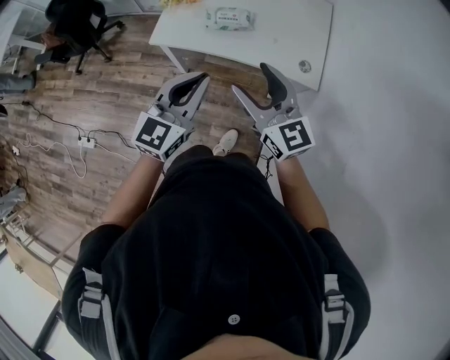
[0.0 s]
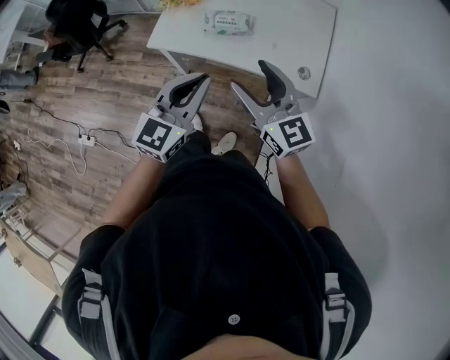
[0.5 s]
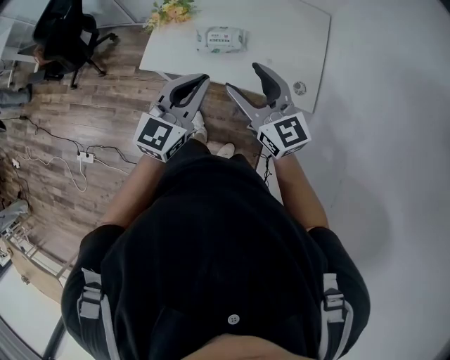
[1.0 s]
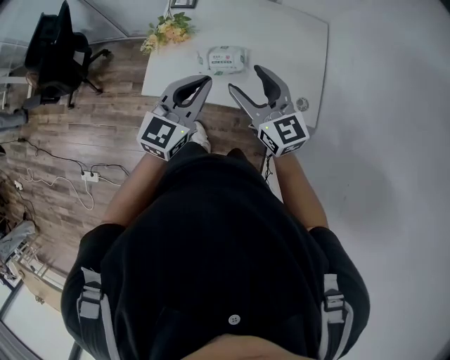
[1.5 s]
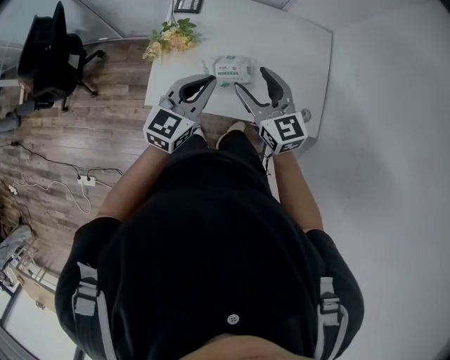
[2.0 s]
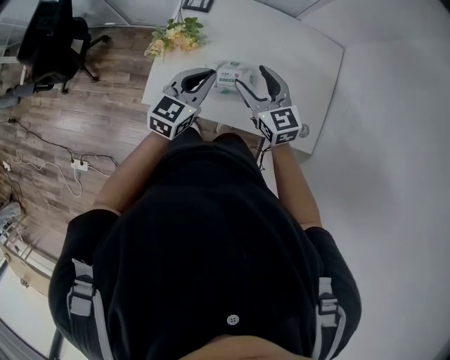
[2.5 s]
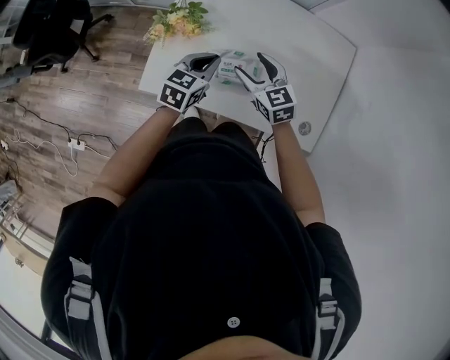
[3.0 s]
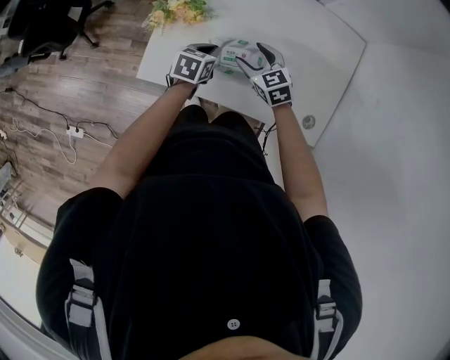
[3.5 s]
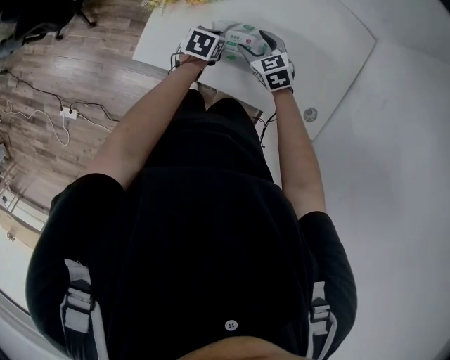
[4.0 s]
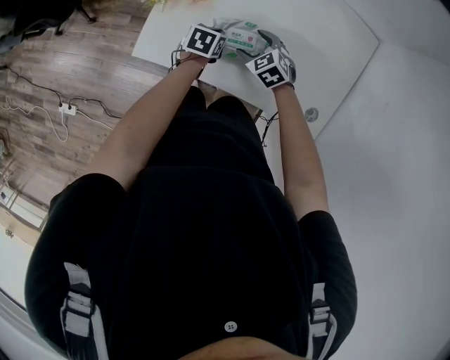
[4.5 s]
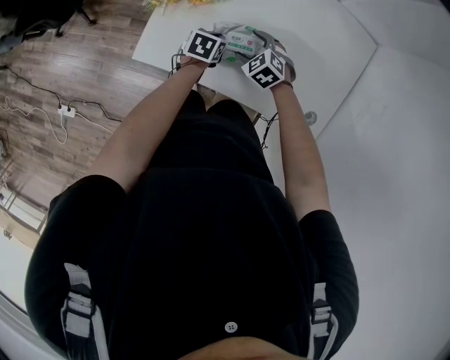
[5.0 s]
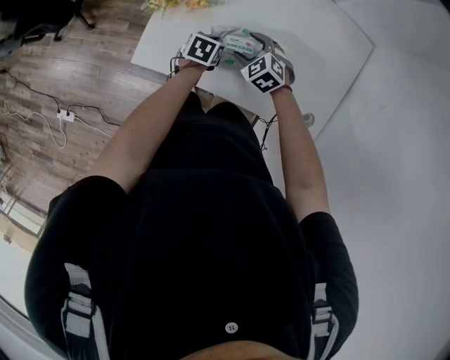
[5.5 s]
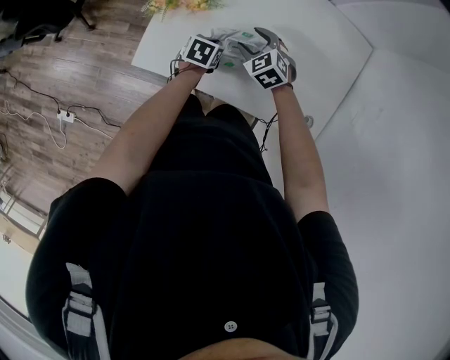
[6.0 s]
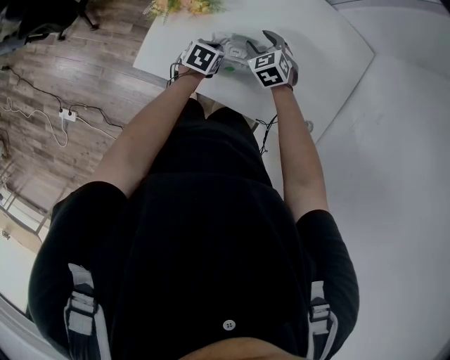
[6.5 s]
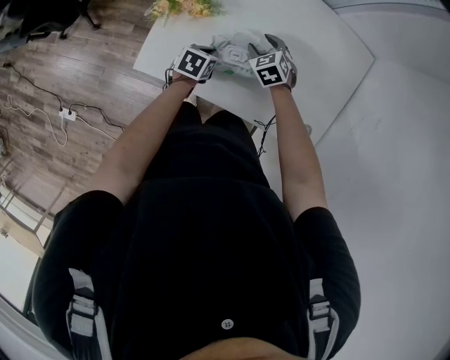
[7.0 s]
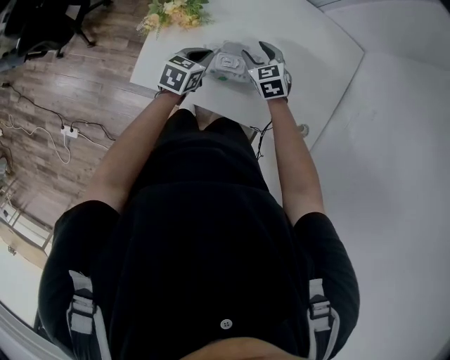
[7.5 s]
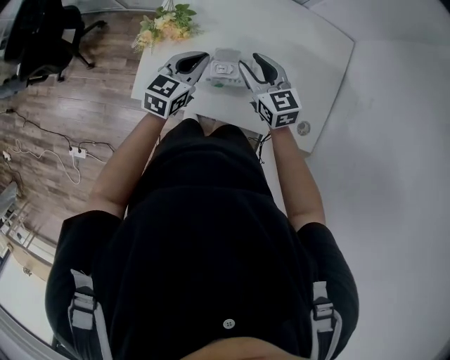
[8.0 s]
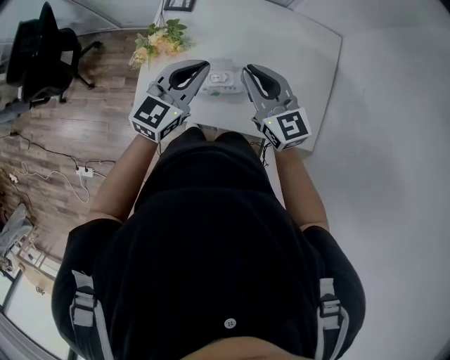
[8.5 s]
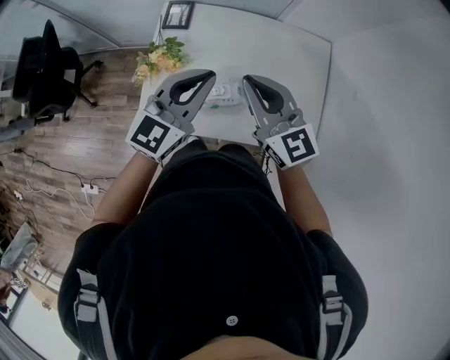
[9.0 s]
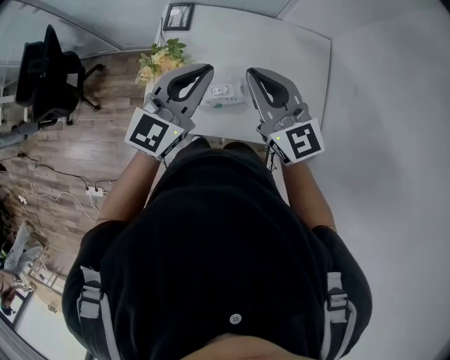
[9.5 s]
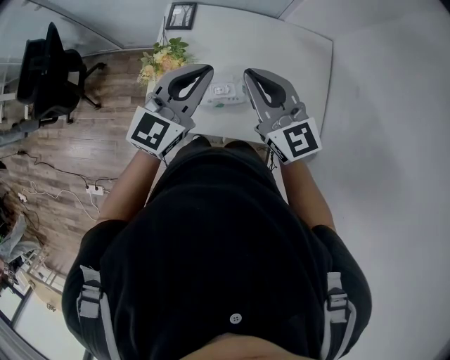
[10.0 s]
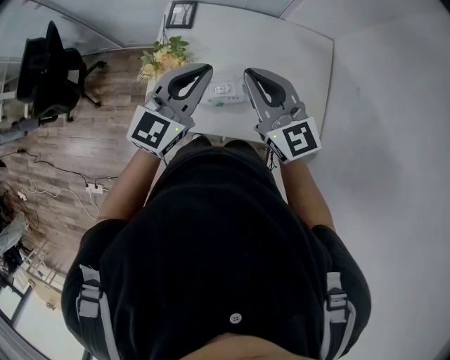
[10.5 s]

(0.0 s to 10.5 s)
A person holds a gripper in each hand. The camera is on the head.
0.0 s - 2.0 s: The two grippers go about 30 cm forward.
2.0 s - 4.0 s: The grippers both shift downward by some 30 cm. The right gripper tilts its fingers roughly 30 degrees downward, while the left gripper angles its fingers downward, by about 50 degrees.
4.0 s - 6.5 s: The right gripper is displaced forward by approximately 5 cm.
6.5 s - 8.5 s: The grippers both shift upward by roughly 30 cm. The right gripper tips its fingers upward by approximately 40 degrees, and closes. The left gripper tips its fingers upward by some 50 degrees.
8.5 s - 10.5 s: The two grippers go about 10 cm upward.

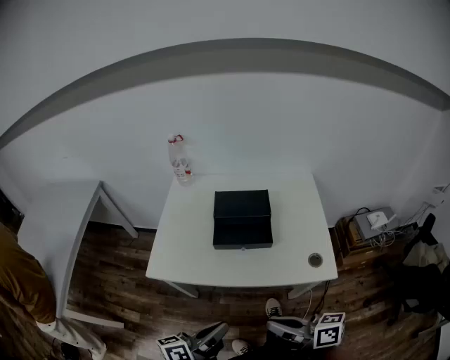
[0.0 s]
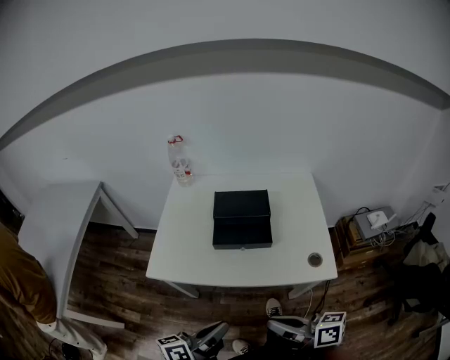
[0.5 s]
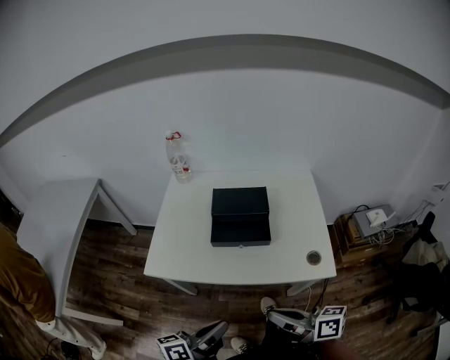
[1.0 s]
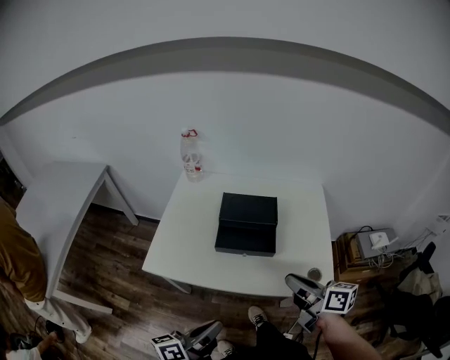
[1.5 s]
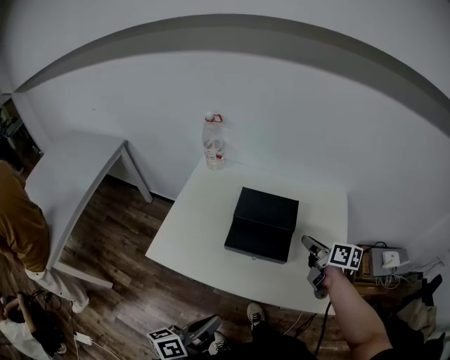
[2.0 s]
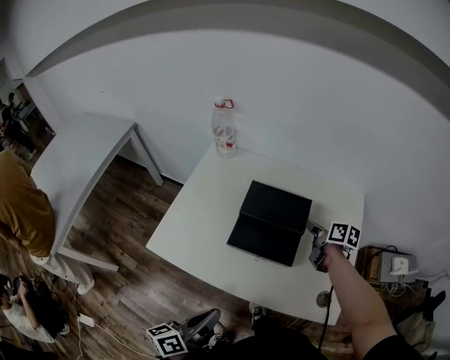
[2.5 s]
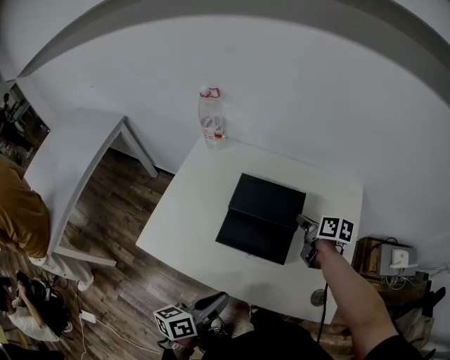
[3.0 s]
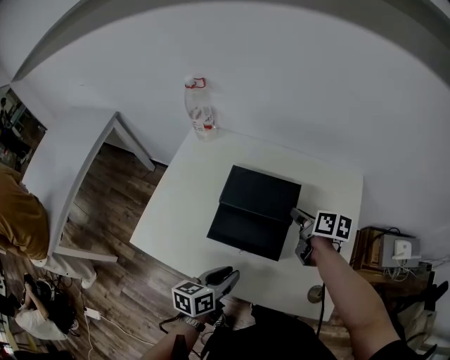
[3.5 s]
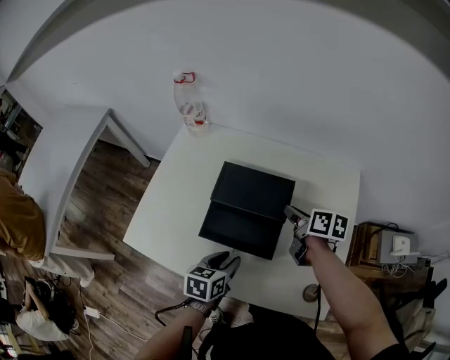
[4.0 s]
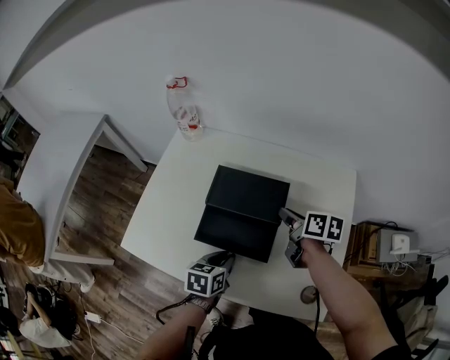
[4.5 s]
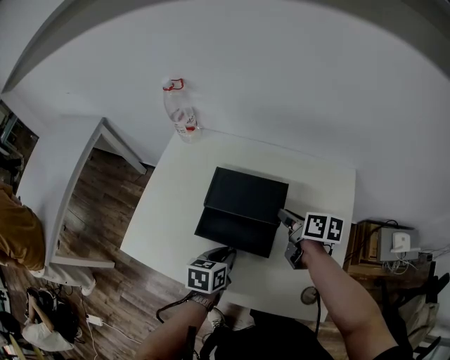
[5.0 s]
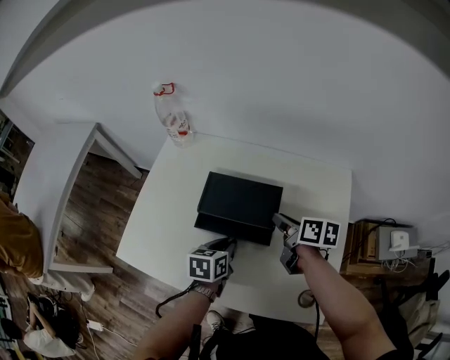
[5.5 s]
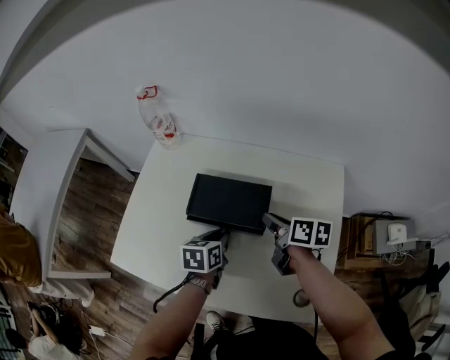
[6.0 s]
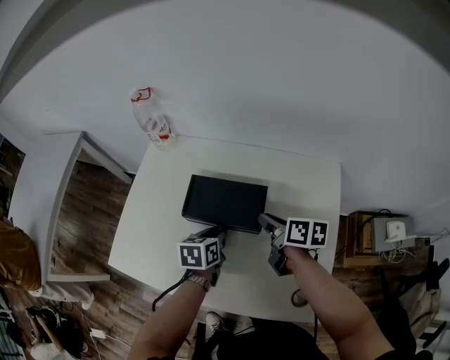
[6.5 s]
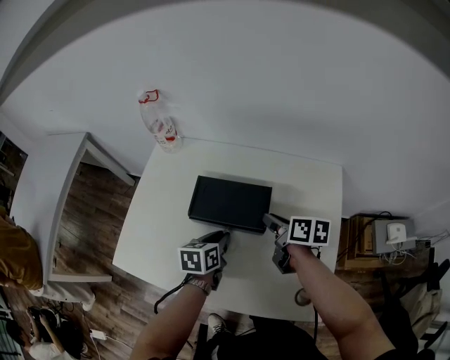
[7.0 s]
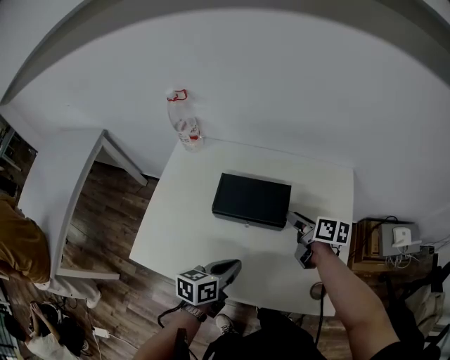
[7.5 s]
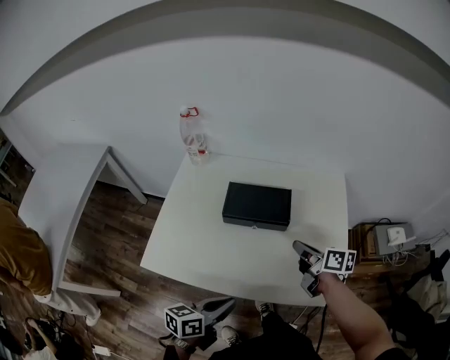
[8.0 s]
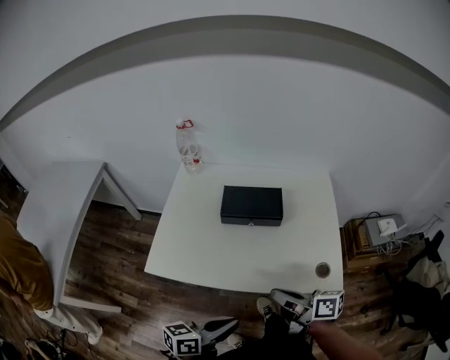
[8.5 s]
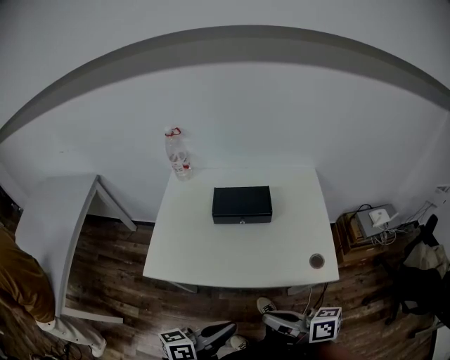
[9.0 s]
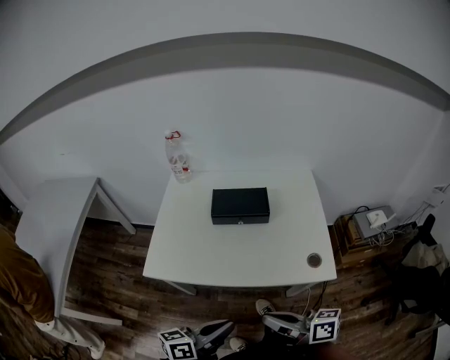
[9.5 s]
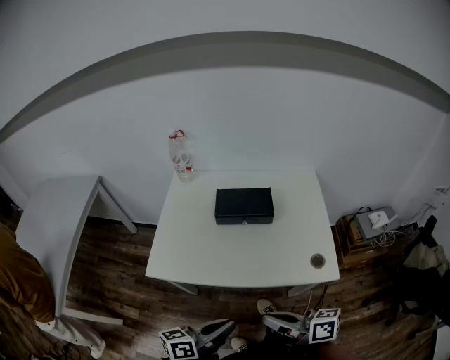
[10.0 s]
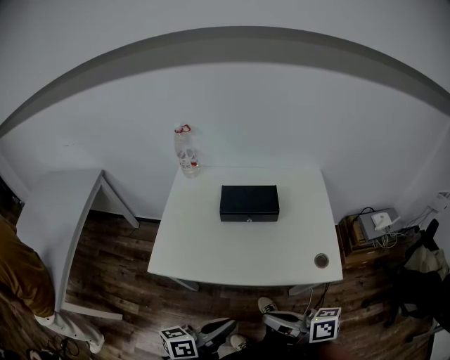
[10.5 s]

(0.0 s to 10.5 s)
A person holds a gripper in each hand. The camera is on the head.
0.0 s - 2.0 s: The right gripper travels forward and to the right by about 40 cm, swivels some 30 degrees, and opens. Meanwhile the left gripper goes some 5 cm forward.
2.0 s - 4.0 s: The left gripper shifts about 25 cm forward, downward and to the right, angles its fingers downward, by roughly 40 degrees, and opens. Meanwhile the right gripper shifts some 15 cm forward and downward.
4.0 s - 6.5 s: The left gripper goes some 15 cm forward, and closes.
6.5 s - 8.5 s: The left gripper moves backward and upward, some 40 cm, and tips its fingers upward by approximately 40 degrees. The right gripper is displaced backward by roughly 30 cm, changes its angle by roughly 20 degrees, and closes.
8.5 s - 10.5 s: The right gripper heads backward, covering some 10 cm.

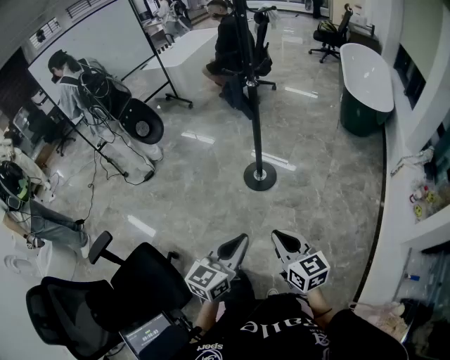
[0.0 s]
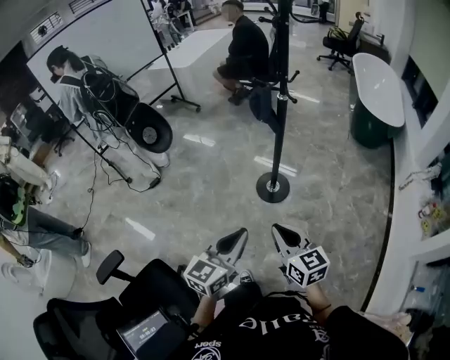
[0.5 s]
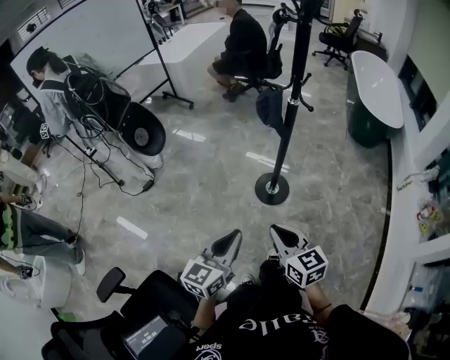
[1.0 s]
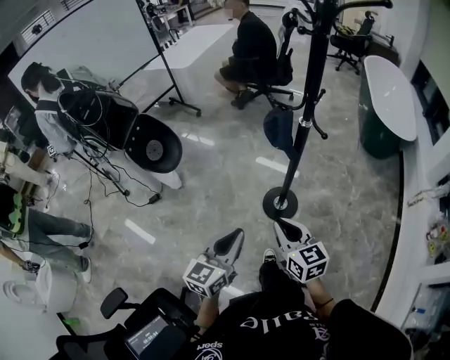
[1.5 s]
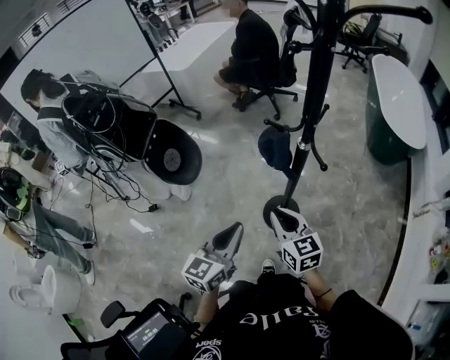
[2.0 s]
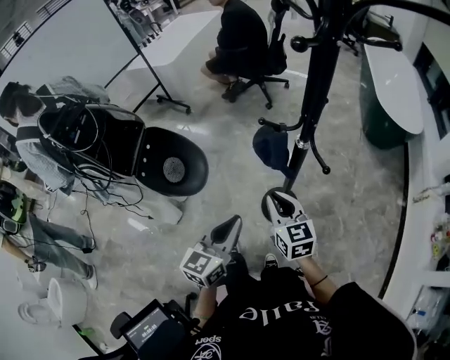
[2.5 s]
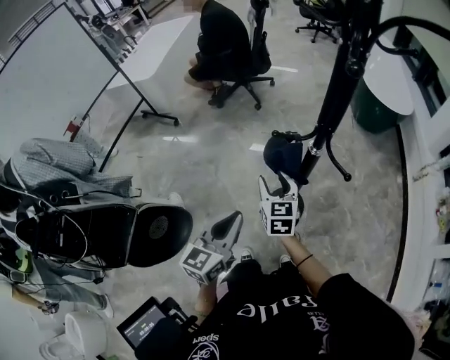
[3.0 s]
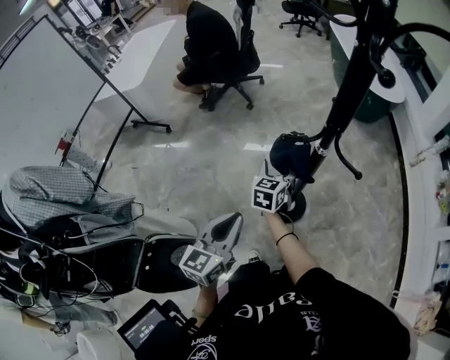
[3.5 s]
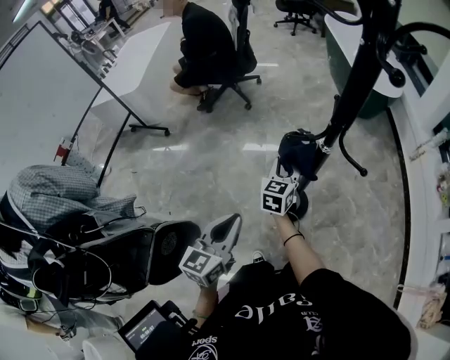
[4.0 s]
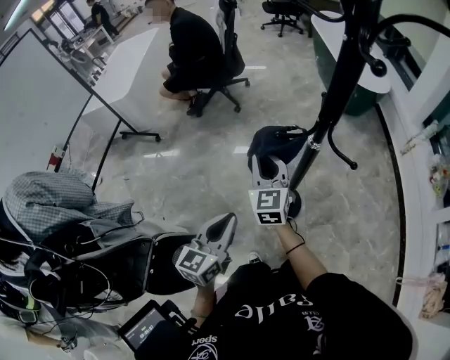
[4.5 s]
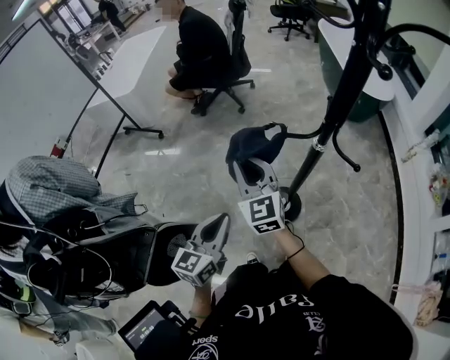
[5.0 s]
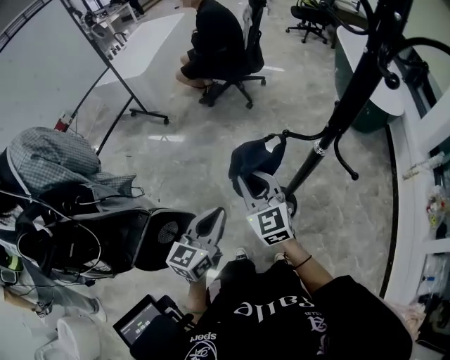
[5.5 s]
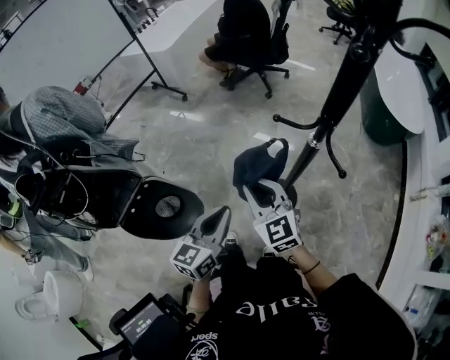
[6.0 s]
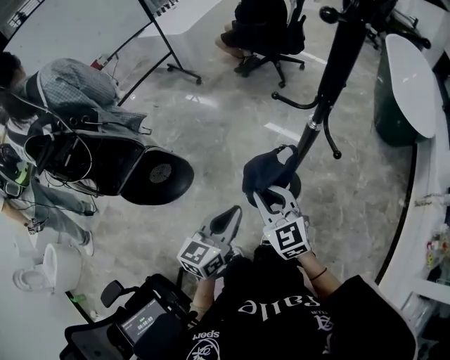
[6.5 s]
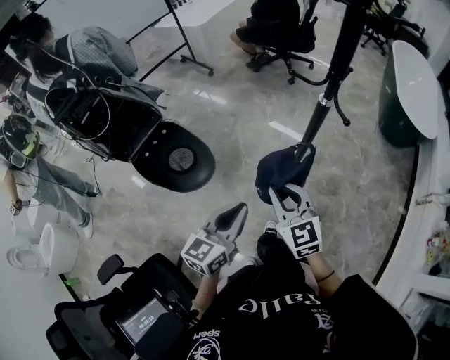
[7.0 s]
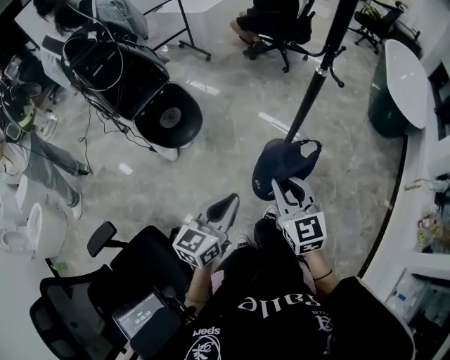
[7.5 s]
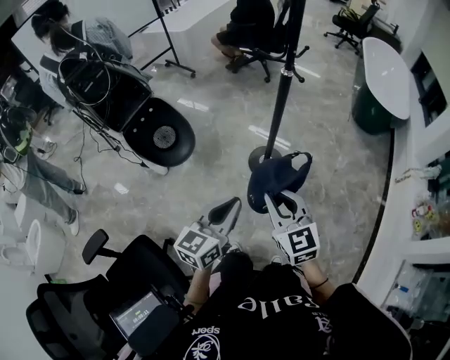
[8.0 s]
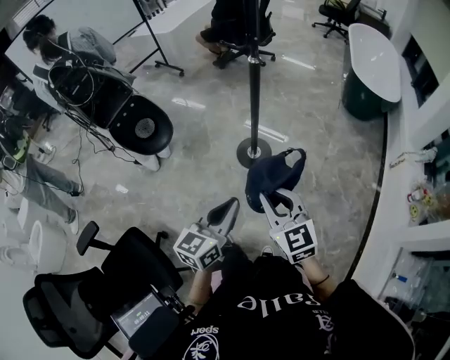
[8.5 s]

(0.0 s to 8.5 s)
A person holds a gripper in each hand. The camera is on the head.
0.0 s - 2.0 s: The two grippers travel together, forward, some 50 cm.
2.0 s - 4.0 s: The left gripper shifts by some 20 cm; the right gripper moves roughly 30 cm, rotates about 60 degrees, and opens, then closes once more.
4.0 s - 6.5 s: The left gripper changes place by some 20 cm, and turns by about 20 degrees. The right gripper changes place by about 25 cm, and changes its angle by roughly 70 degrees.
6.5 s - 8.5 s: The pair of grippers is taken backward and to the right, roughly 40 cm.
